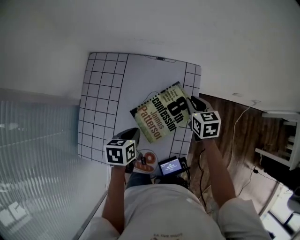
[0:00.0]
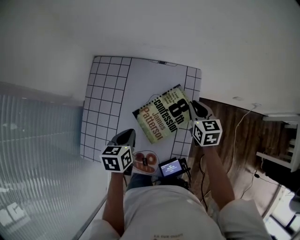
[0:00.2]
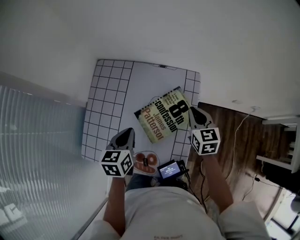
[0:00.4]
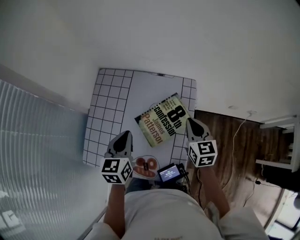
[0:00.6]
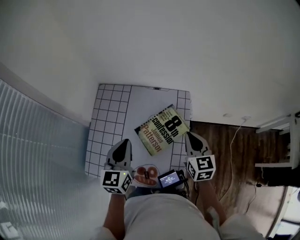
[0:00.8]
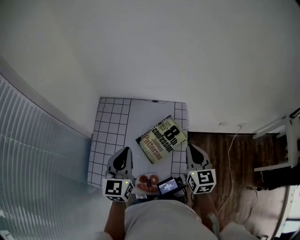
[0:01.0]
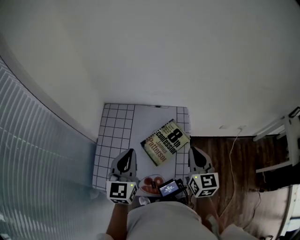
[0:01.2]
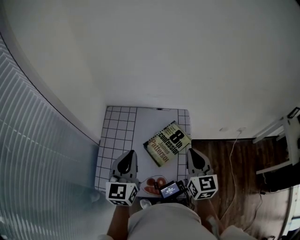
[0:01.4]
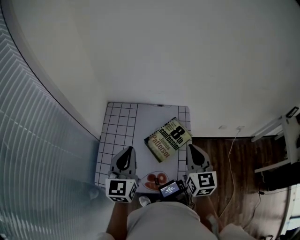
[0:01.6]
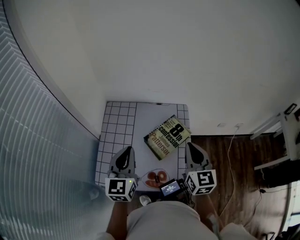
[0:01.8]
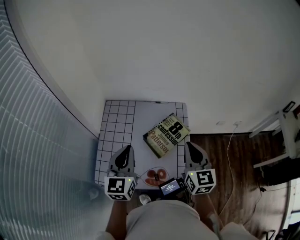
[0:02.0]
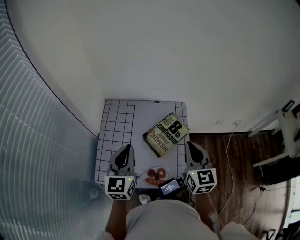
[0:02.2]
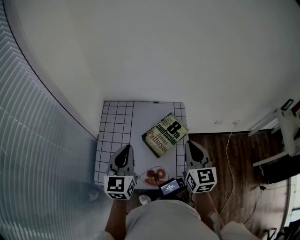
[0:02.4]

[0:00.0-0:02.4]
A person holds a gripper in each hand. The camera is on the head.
0:00.0 to 0:01.2: The right gripper heads upward and backward, covering about 25 cm, and changes its angle by some 30 degrees. Meanwhile the left gripper is displaced upward by some 25 cm, and angles its fingers upward, by about 50 degrees.
0:01.2 to 0:02.4: The right gripper ends up some 5 cm from where it was, while the left gripper shifts by about 5 cm.

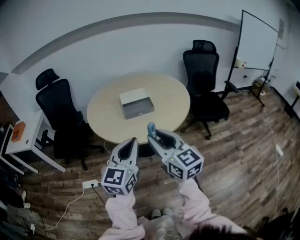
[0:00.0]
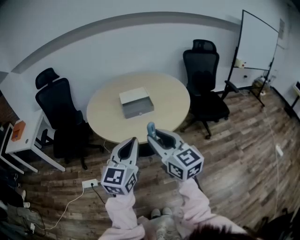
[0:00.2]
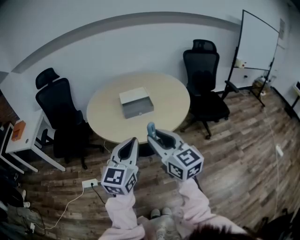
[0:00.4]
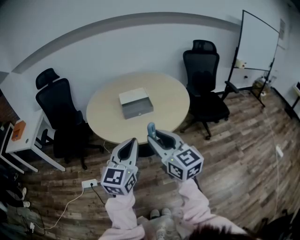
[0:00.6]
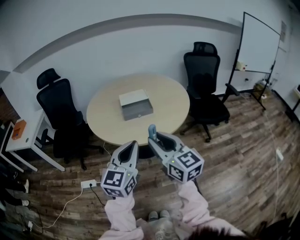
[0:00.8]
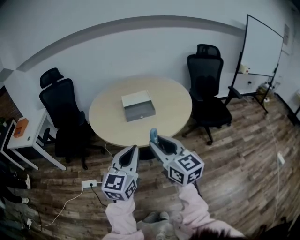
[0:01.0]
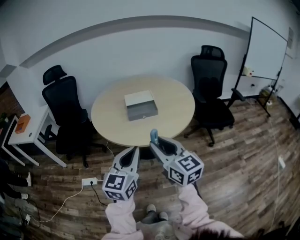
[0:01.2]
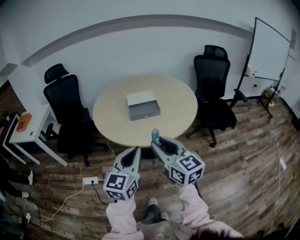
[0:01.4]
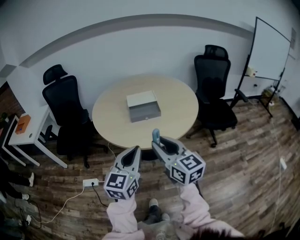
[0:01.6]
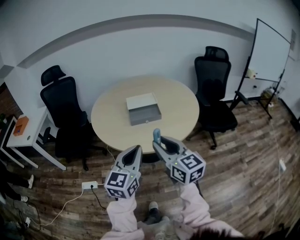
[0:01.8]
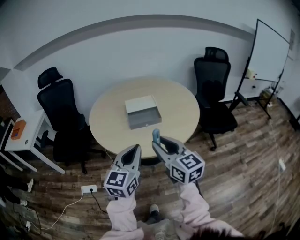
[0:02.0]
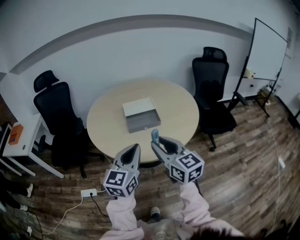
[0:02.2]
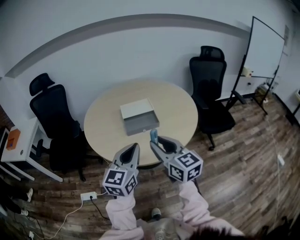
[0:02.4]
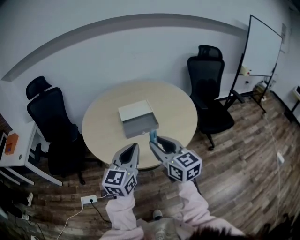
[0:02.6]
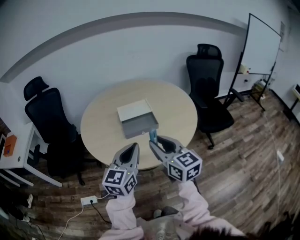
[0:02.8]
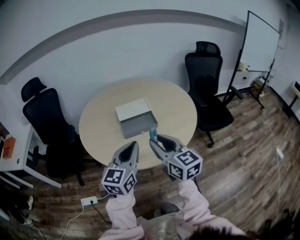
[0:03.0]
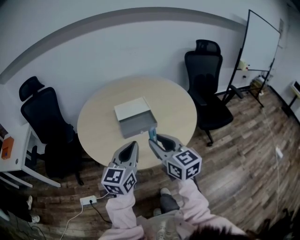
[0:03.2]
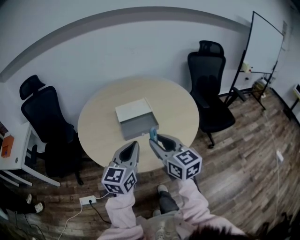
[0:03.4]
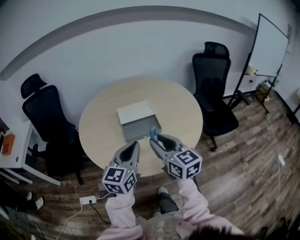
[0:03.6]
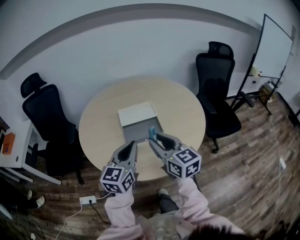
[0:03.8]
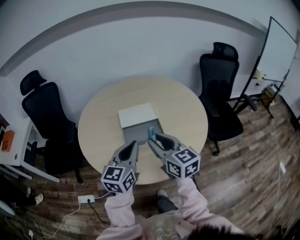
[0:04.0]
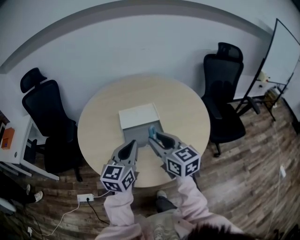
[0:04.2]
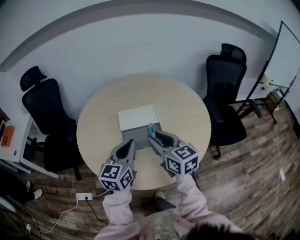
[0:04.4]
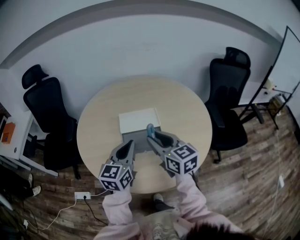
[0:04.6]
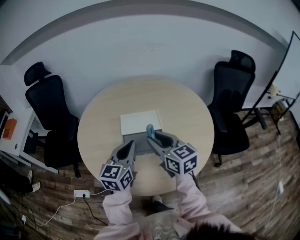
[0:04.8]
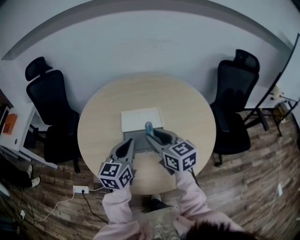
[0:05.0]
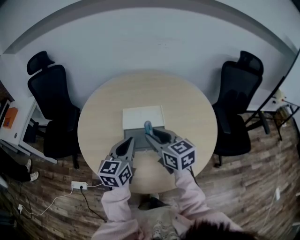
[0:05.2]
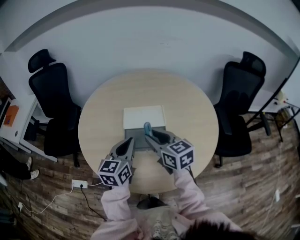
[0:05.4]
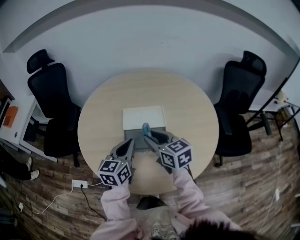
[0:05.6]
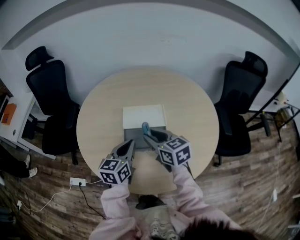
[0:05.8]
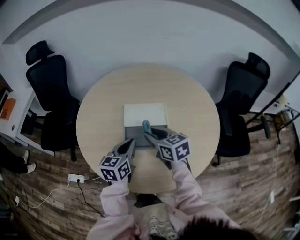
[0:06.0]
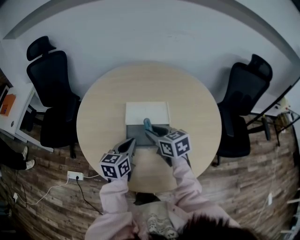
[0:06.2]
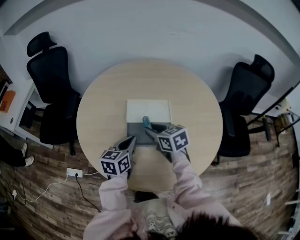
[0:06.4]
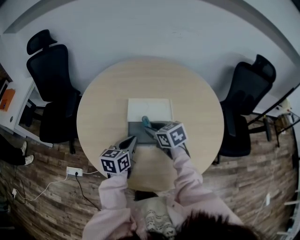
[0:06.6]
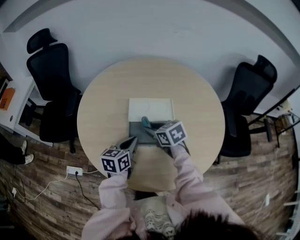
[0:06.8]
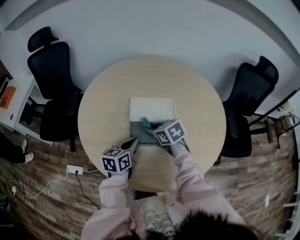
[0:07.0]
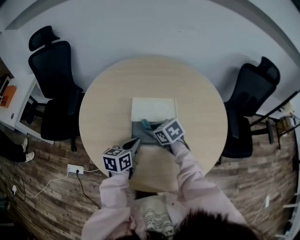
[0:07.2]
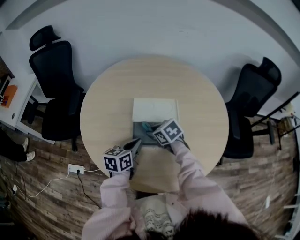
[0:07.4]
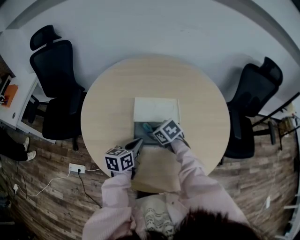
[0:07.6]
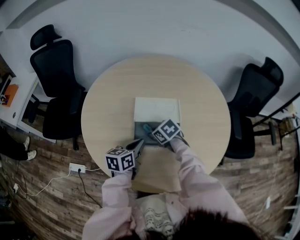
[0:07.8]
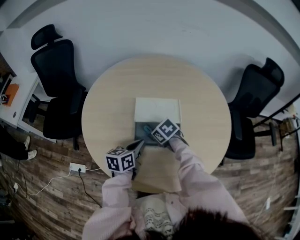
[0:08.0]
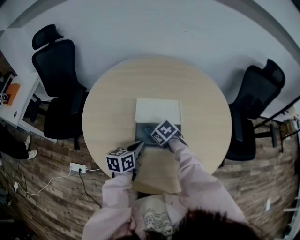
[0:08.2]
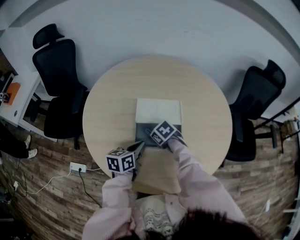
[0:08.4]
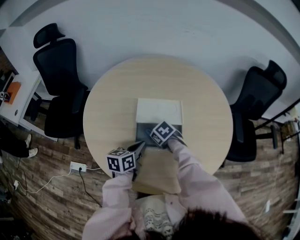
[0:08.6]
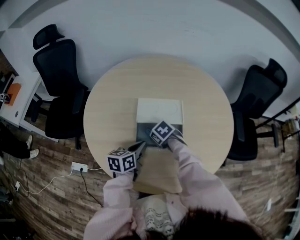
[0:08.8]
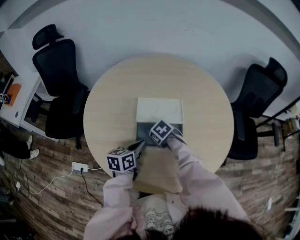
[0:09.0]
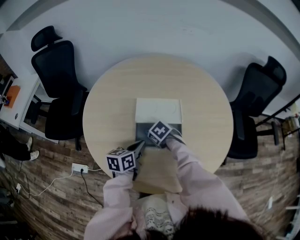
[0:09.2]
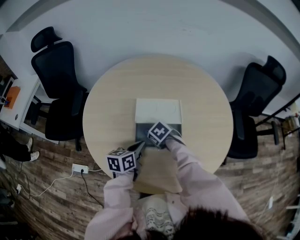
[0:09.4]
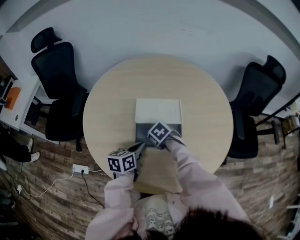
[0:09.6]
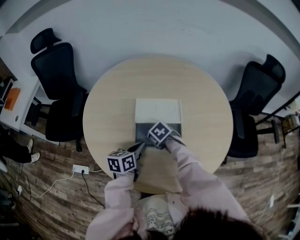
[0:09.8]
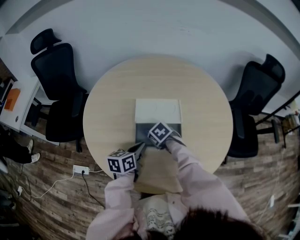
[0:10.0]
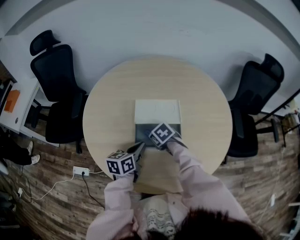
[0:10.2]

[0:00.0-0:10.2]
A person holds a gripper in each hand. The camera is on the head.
0:00.0 to 0:01.4: The grippers move only a little.
0:01.4 to 0:03.0: Both grippers move forward, about 20 cm.
0:03.0 to 0:04.4: Both grippers move forward, about 15 cm.
0:04.4 to 0:05.8: The left gripper is displaced downward and forward by about 10 cm. The right gripper heads forward and downward, covering approximately 10 cm.
0:05.8 to 0:07.2: The right gripper is displaced downward and forward by roughly 15 cm, and swivels about 30 degrees; the left gripper moves downward, about 10 cm.
0:07.2 to 0:08.8: The right gripper travels downward by about 10 cm, and swivels about 20 degrees.
0:08.8 to 0:10.2: The grippers stay close to where they were, moving slightly.

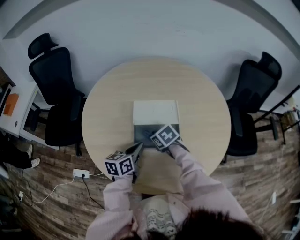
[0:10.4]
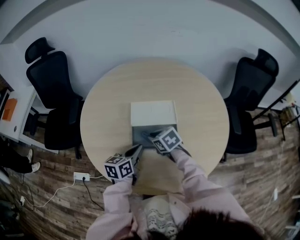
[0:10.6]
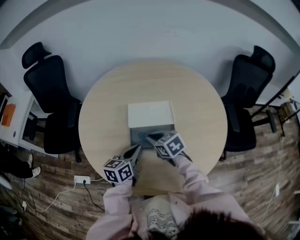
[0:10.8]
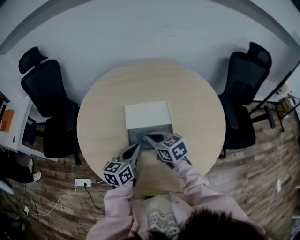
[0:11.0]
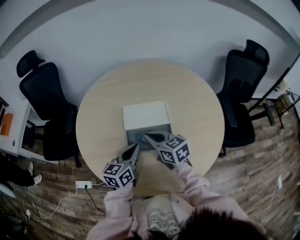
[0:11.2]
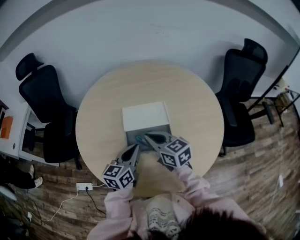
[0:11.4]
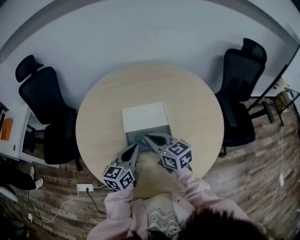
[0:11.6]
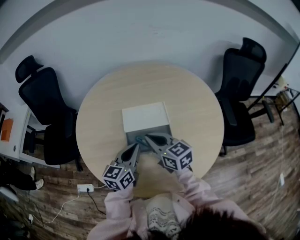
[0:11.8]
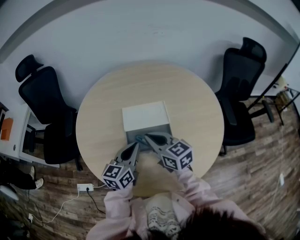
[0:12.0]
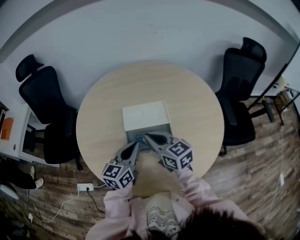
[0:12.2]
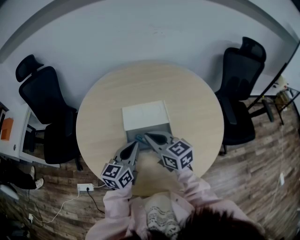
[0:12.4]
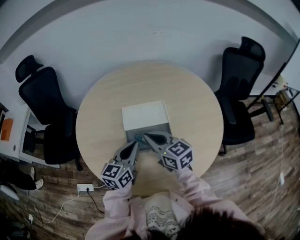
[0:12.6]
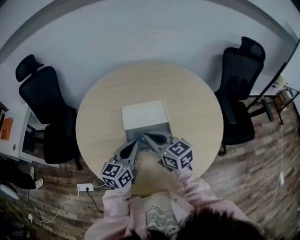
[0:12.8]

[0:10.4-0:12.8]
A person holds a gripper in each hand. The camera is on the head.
0:10.4 to 0:11.6: The left gripper heads upward, covering roughly 5 cm, and changes its angle by about 20 degrees. Meanwhile the right gripper heads upward, covering roughly 15 cm, and points its fingers some 40 degrees further upward.
0:11.6 to 0:12.8: There are only small adjustments of the grippers.

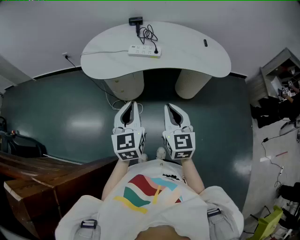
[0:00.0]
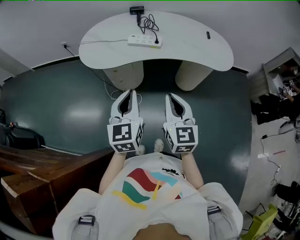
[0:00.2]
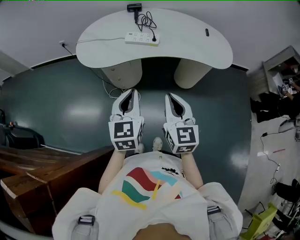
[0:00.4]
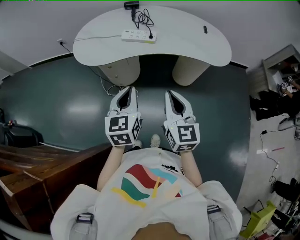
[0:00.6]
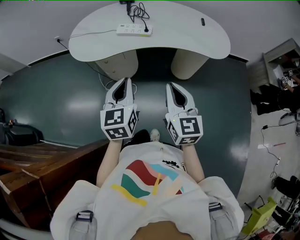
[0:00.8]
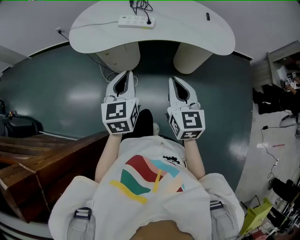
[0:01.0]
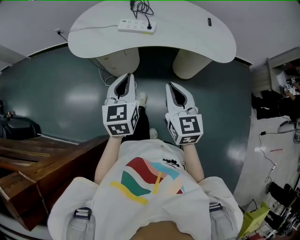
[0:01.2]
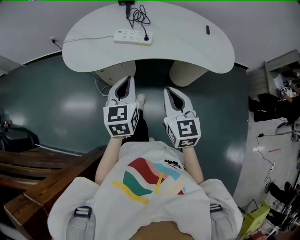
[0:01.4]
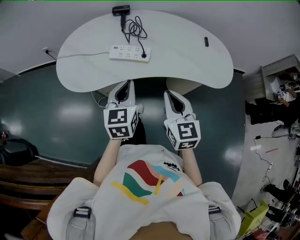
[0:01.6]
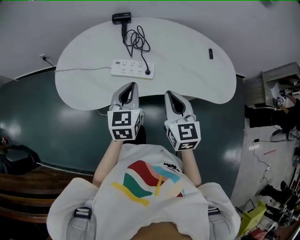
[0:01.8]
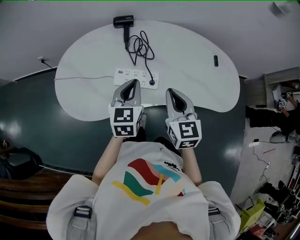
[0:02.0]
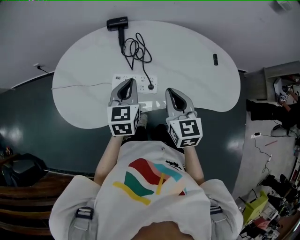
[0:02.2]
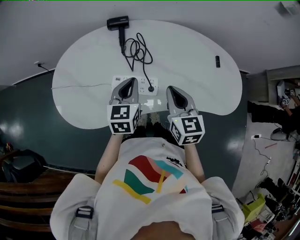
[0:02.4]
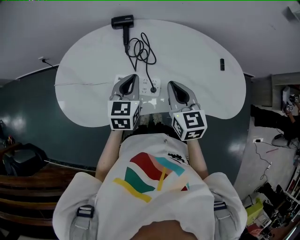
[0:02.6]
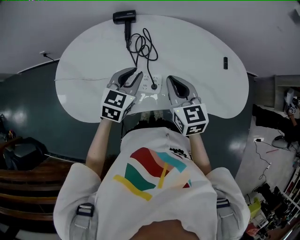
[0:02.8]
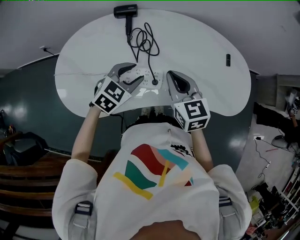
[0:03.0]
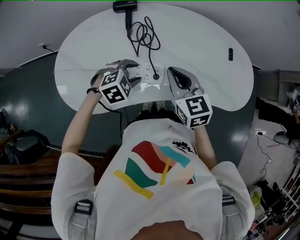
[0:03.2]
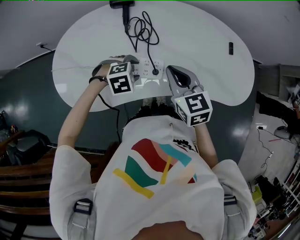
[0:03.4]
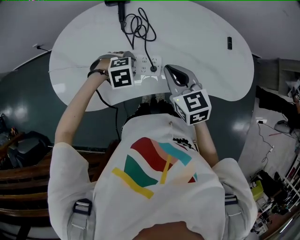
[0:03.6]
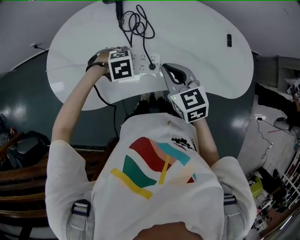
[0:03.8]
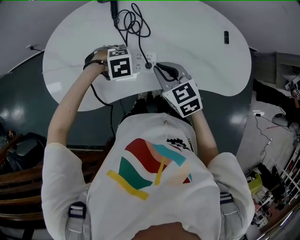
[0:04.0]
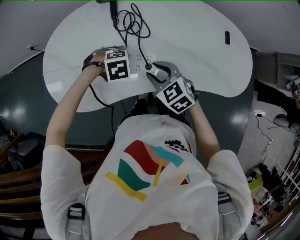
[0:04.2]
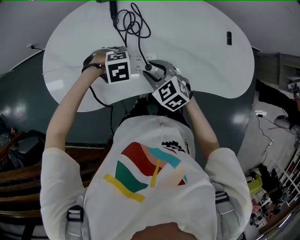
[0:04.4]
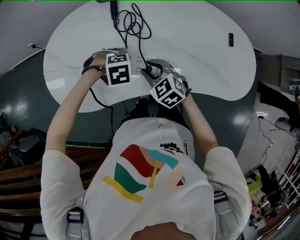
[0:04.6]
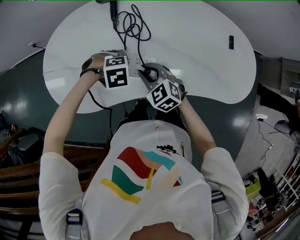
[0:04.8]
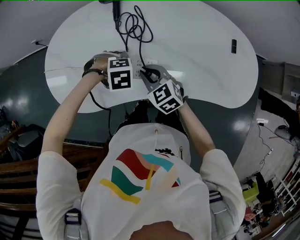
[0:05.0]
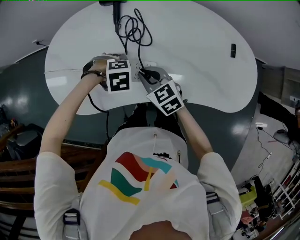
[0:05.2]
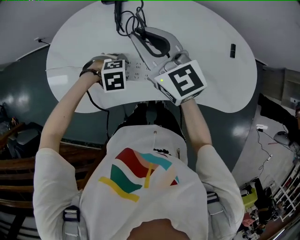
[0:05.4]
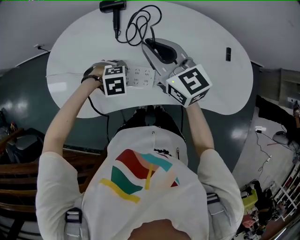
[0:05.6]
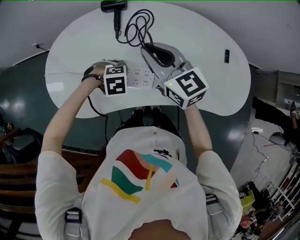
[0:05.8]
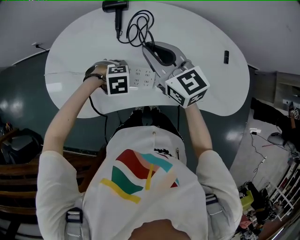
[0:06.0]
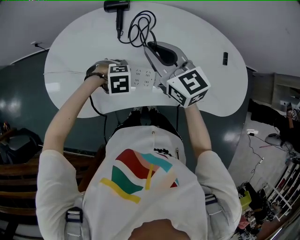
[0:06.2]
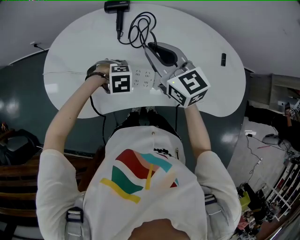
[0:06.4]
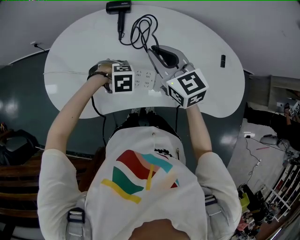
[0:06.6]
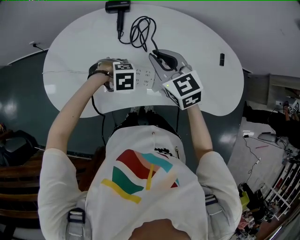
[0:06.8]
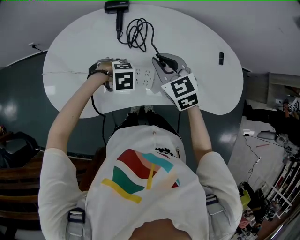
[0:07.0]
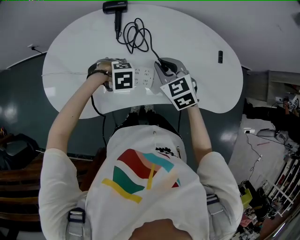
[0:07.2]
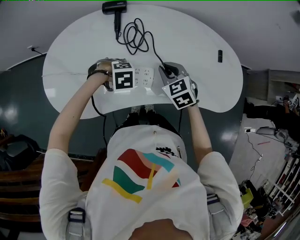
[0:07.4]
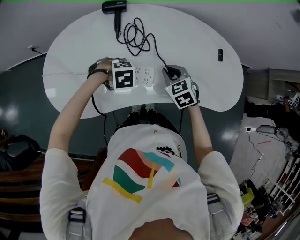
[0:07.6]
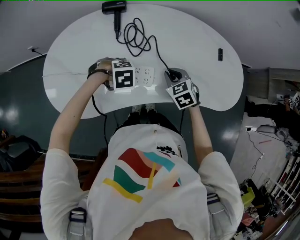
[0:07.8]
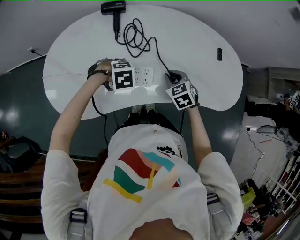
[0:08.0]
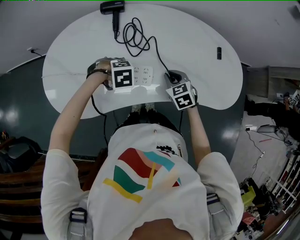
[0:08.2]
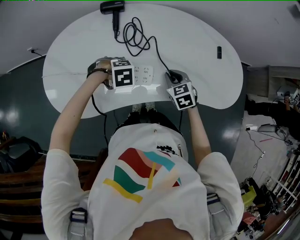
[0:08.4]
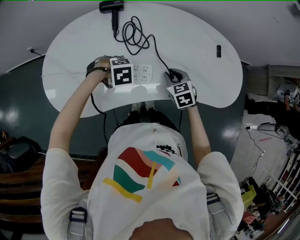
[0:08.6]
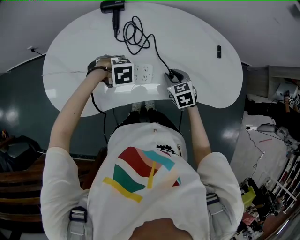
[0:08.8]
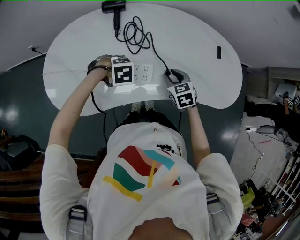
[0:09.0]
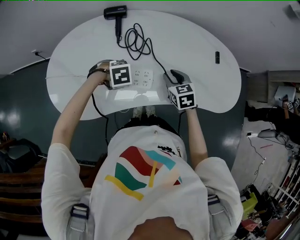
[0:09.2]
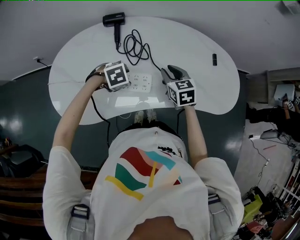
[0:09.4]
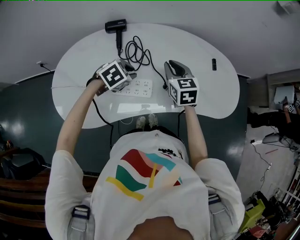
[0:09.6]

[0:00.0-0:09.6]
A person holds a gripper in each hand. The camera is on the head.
0:00.0 to 0:01.6: The two grippers go about 20 cm forward.
0:01.6 to 0:03.2: The left gripper goes approximately 25 cm forward and downward, angles its fingers downward, by approximately 40 degrees, and opens its fingers. The right gripper goes approximately 25 cm forward.
0:03.2 to 0:04.8: The left gripper moves downward, some 5 cm, and rotates roughly 30 degrees. The right gripper is displaced downward by roughly 15 cm, and swivels approximately 30 degrees.
0:04.8 to 0:06.4: The right gripper is displaced upward by roughly 20 cm, and changes its angle by approximately 30 degrees.
0:06.4 to 0:08.0: The right gripper is displaced downward by roughly 20 cm, and angles its fingers downward, by about 40 degrees.
0:08.0 to 0:09.6: The right gripper travels upward by roughly 15 cm, and turns by roughly 30 degrees; the left gripper goes approximately 10 cm upward, rotates approximately 30 degrees, and closes.
